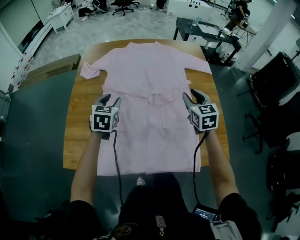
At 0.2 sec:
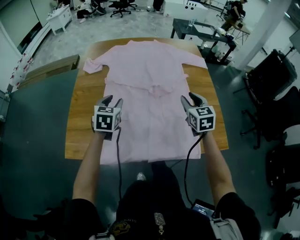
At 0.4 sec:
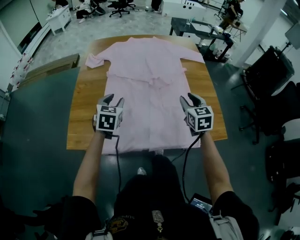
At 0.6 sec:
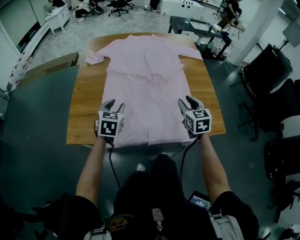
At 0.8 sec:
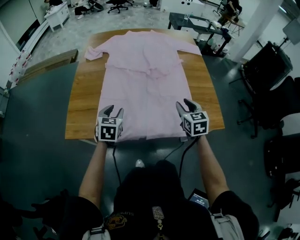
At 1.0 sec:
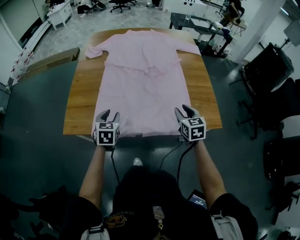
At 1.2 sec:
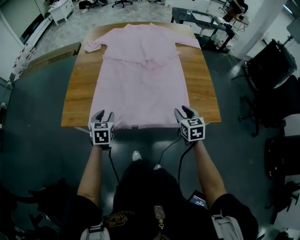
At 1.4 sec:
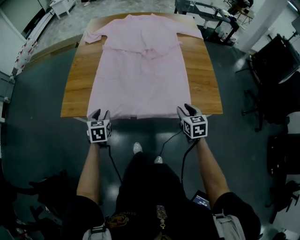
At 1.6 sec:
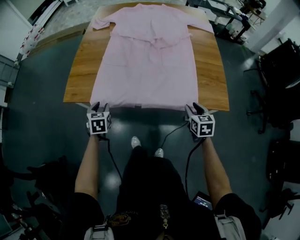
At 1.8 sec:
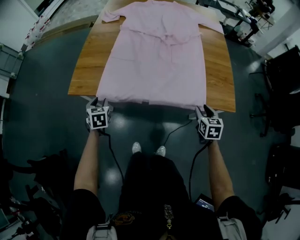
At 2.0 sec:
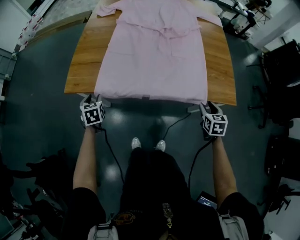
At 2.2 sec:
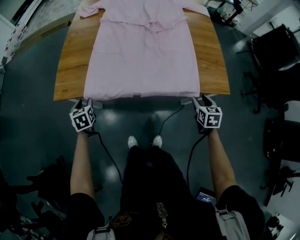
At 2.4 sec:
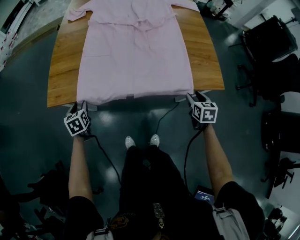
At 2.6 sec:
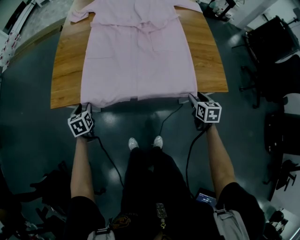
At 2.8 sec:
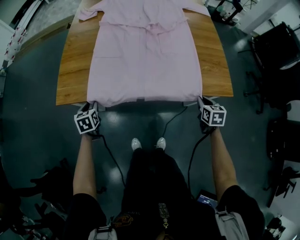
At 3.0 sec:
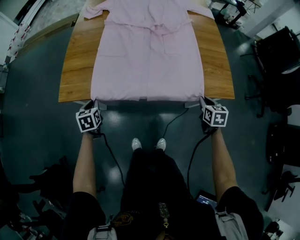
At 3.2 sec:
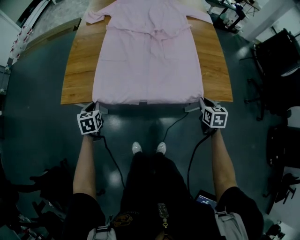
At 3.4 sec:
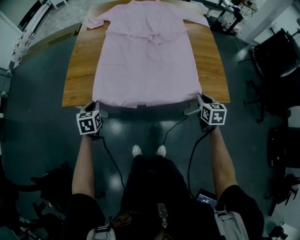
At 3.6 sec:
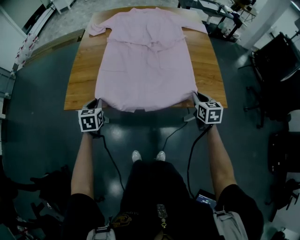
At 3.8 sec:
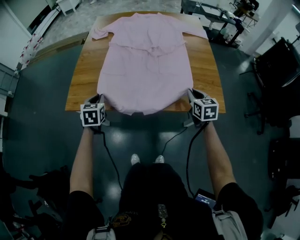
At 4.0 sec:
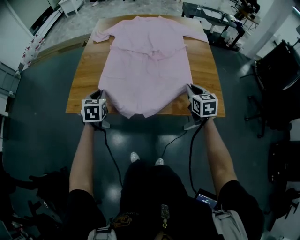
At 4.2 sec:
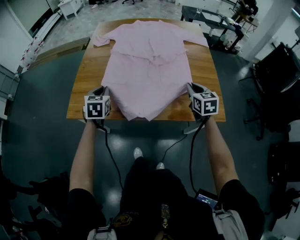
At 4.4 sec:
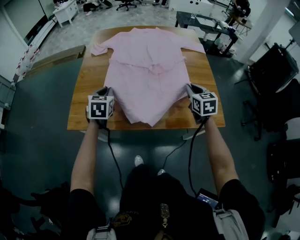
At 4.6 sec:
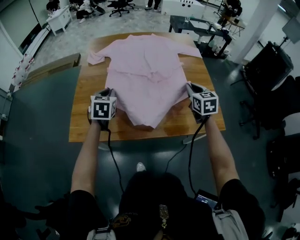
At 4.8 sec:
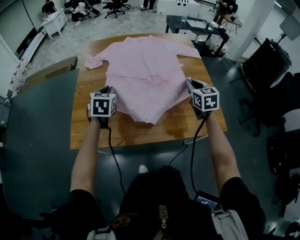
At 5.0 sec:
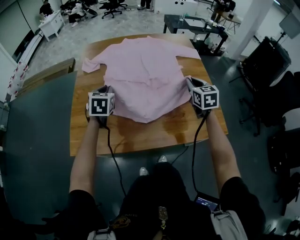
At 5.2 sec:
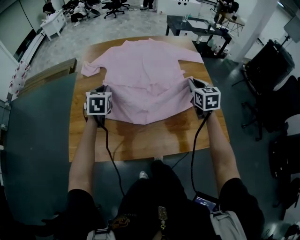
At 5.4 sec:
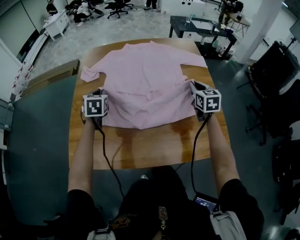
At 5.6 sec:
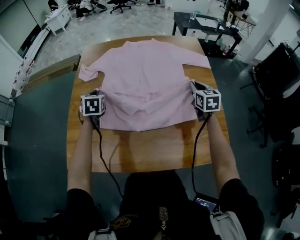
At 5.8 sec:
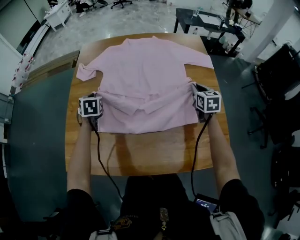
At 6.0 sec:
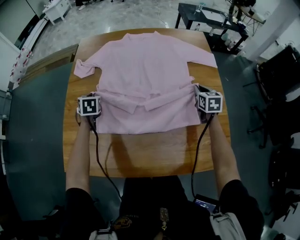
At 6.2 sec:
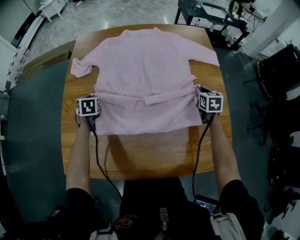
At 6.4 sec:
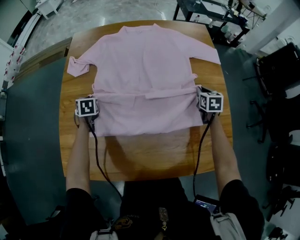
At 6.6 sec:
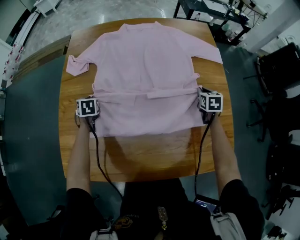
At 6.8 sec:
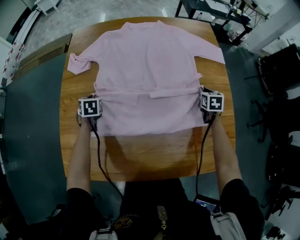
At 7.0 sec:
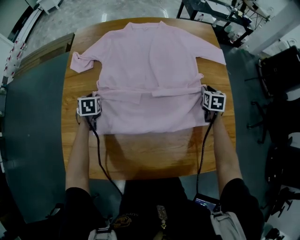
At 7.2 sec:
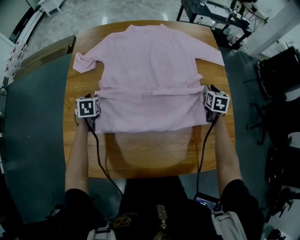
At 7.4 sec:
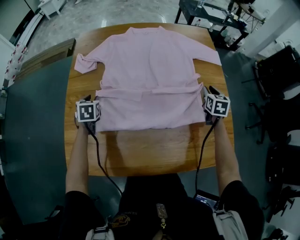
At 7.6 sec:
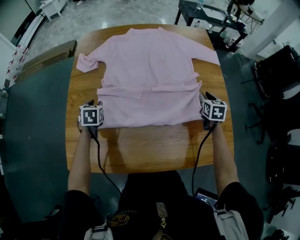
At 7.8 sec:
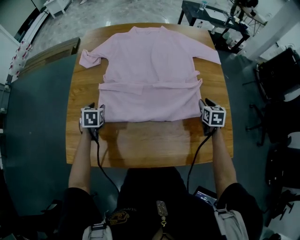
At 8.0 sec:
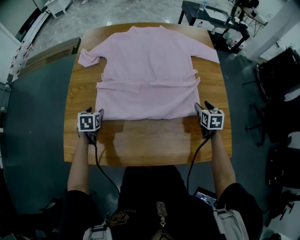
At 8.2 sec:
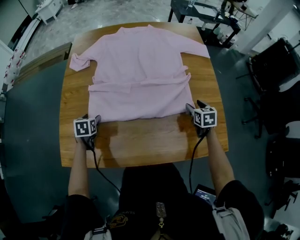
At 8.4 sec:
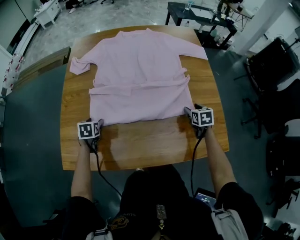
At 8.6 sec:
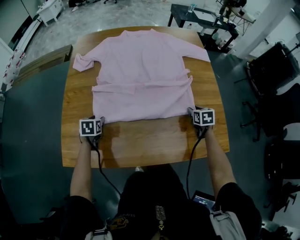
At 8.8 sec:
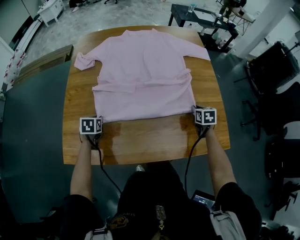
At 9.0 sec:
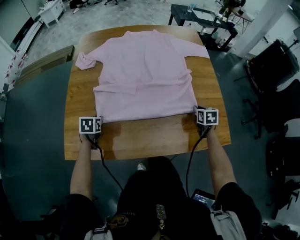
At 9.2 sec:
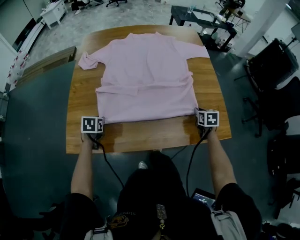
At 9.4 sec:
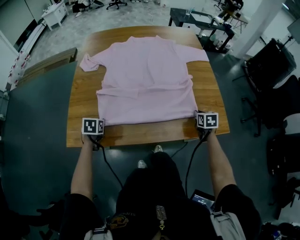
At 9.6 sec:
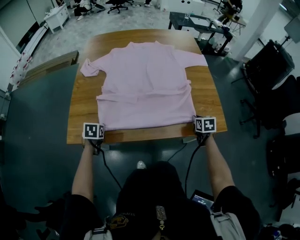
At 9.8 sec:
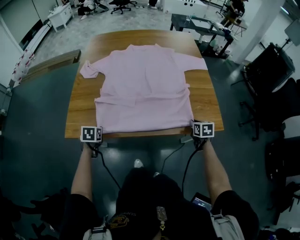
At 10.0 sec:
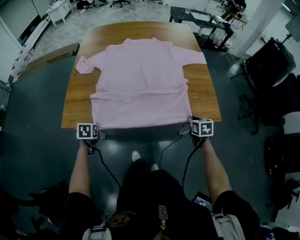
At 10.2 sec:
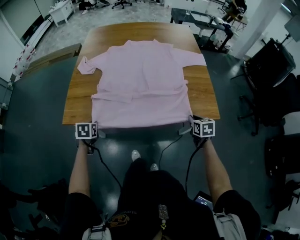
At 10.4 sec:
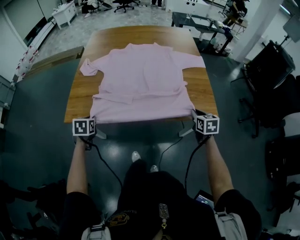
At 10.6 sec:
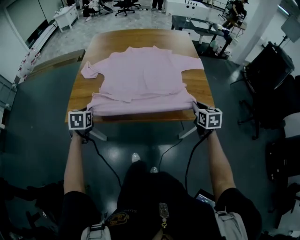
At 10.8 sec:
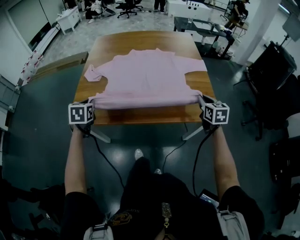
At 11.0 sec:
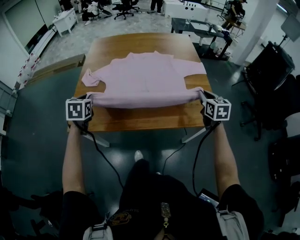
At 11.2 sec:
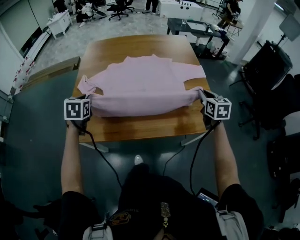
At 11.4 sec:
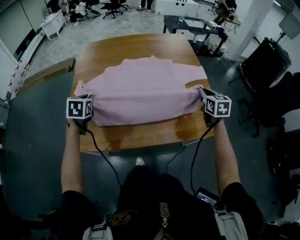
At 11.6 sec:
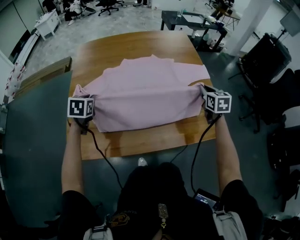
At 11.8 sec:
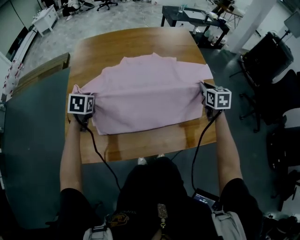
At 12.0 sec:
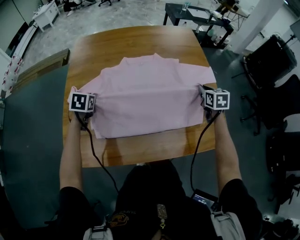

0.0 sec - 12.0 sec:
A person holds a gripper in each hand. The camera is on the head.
0.0 sec - 1.6 sec: The right gripper moves backward and downward, about 35 cm, while the left gripper travels backward by roughly 35 cm, and changes its angle by approximately 20 degrees.
1.6 sec - 3.0 sec: The left gripper heads to the left and downward, covering approximately 10 cm, and closes up. Meanwhile the right gripper closes its fingers.
3.0 sec - 4.4 sec: The left gripper is displaced upward, forward and to the right by roughly 25 cm, and rotates roughly 20 degrees. Meanwhile the right gripper heads upward and forward, covering some 25 cm, and turns by roughly 20 degrees.
4.4 sec - 6.0 sec: Both grippers travel together forward, approximately 25 cm. The left gripper rotates approximately 20 degrees.
6.0 sec - 7.6 sec: The grippers both shift backward by approximately 5 cm. The right gripper travels downward and back again, some 10 cm each way. Meanwhile the left gripper opens up.
7.6 sec - 9.0 sec: The grippers both shift backward and downward by about 15 cm. The right gripper opens, then closes again; the left gripper opens, then closes again.
9.0 sec - 10.4 sec: Both grippers travel together backward, roughly 20 cm.
10.4 sec - 12.0 sec: Both grippers move forward, roughly 30 cm.

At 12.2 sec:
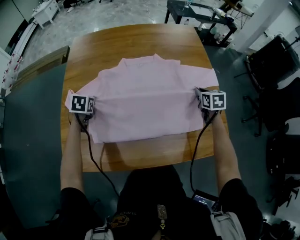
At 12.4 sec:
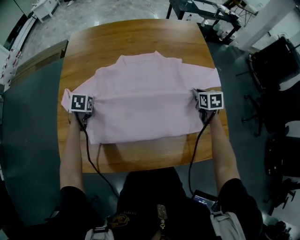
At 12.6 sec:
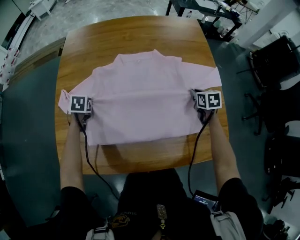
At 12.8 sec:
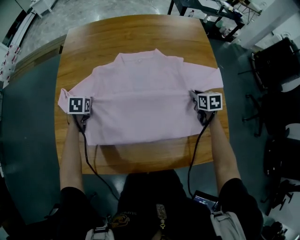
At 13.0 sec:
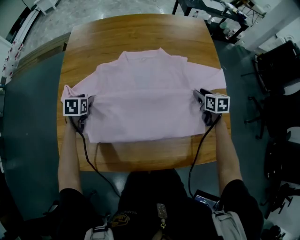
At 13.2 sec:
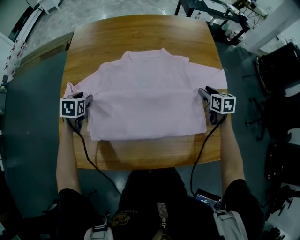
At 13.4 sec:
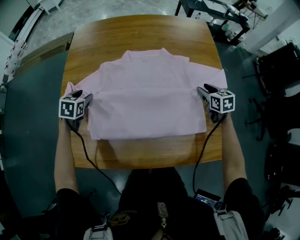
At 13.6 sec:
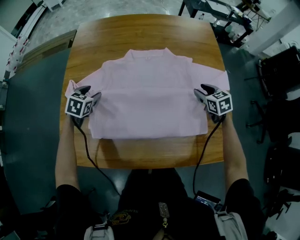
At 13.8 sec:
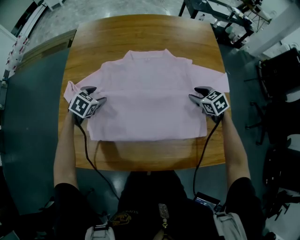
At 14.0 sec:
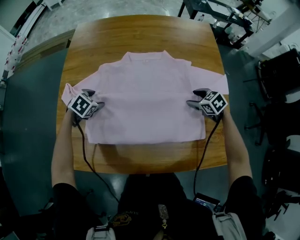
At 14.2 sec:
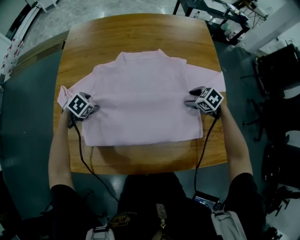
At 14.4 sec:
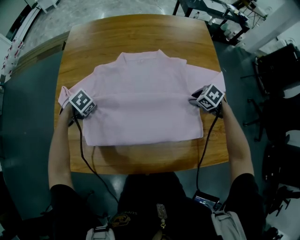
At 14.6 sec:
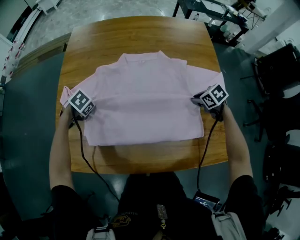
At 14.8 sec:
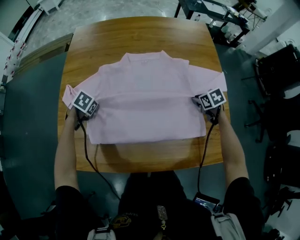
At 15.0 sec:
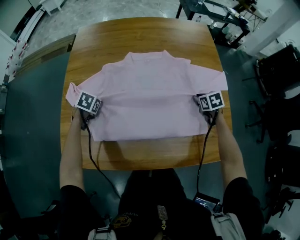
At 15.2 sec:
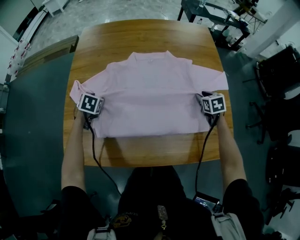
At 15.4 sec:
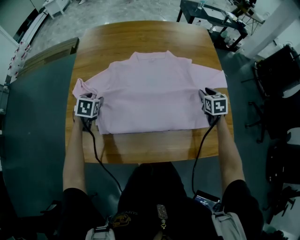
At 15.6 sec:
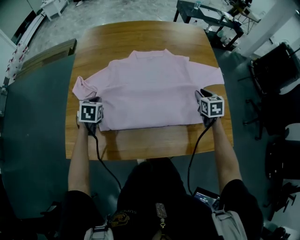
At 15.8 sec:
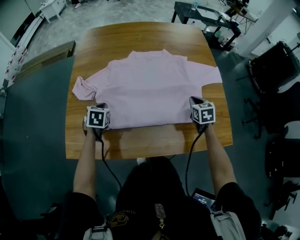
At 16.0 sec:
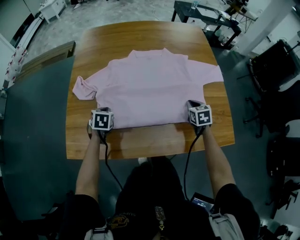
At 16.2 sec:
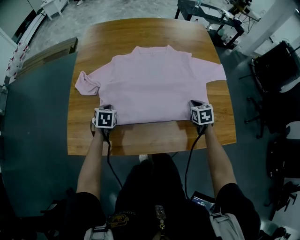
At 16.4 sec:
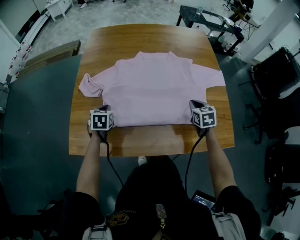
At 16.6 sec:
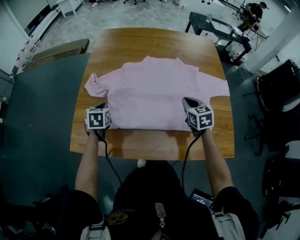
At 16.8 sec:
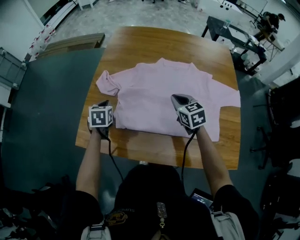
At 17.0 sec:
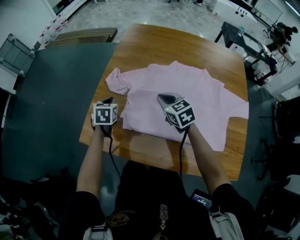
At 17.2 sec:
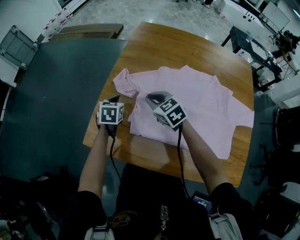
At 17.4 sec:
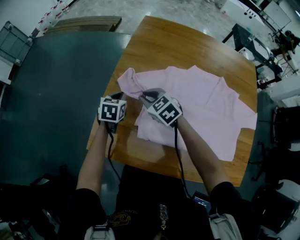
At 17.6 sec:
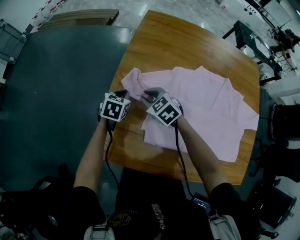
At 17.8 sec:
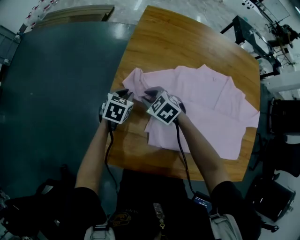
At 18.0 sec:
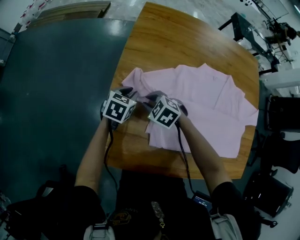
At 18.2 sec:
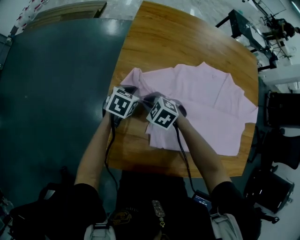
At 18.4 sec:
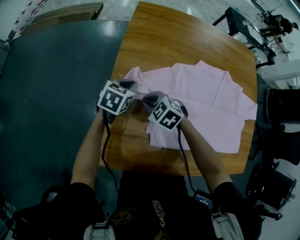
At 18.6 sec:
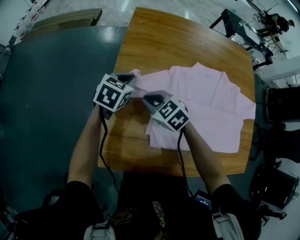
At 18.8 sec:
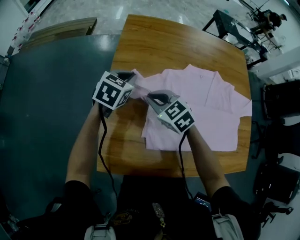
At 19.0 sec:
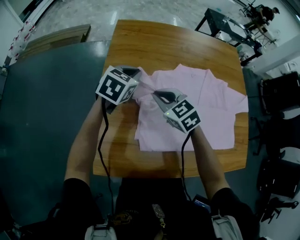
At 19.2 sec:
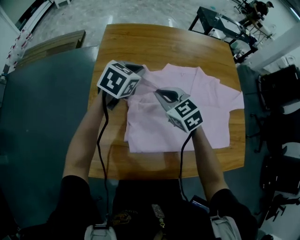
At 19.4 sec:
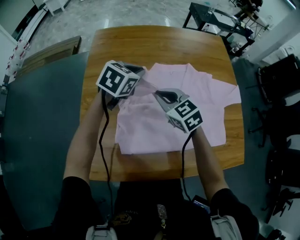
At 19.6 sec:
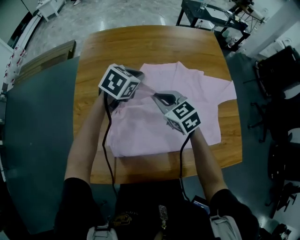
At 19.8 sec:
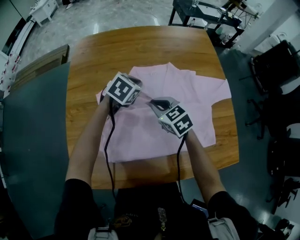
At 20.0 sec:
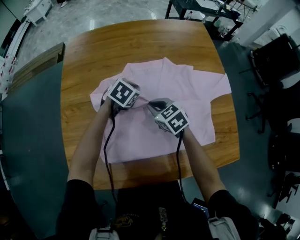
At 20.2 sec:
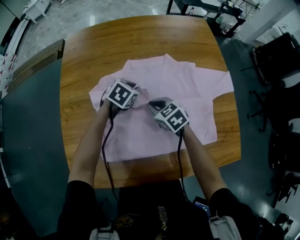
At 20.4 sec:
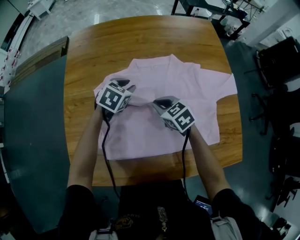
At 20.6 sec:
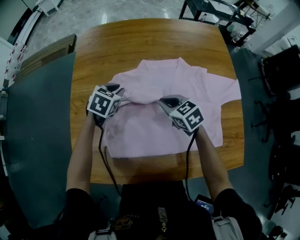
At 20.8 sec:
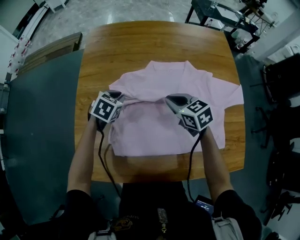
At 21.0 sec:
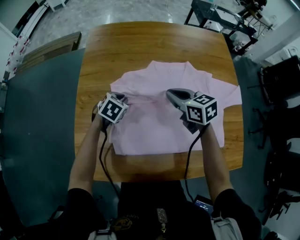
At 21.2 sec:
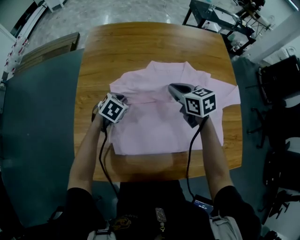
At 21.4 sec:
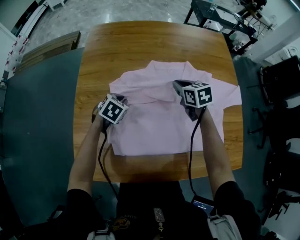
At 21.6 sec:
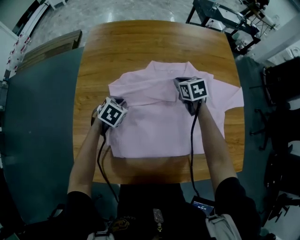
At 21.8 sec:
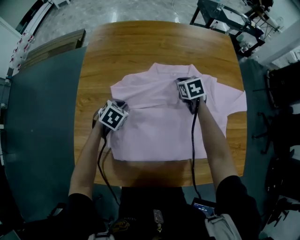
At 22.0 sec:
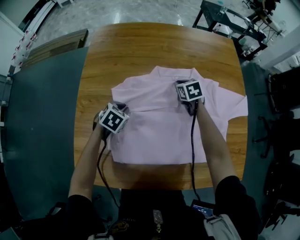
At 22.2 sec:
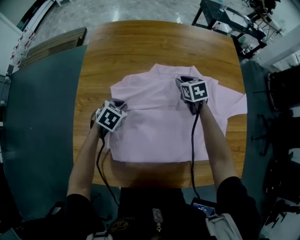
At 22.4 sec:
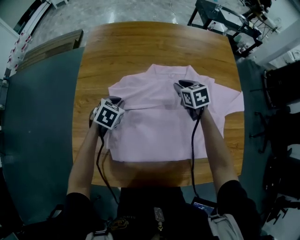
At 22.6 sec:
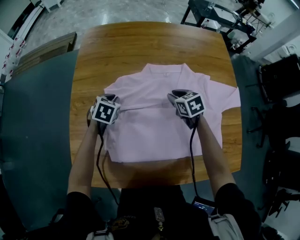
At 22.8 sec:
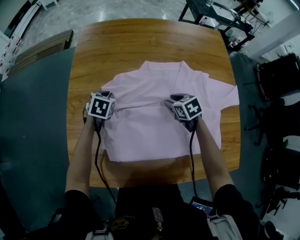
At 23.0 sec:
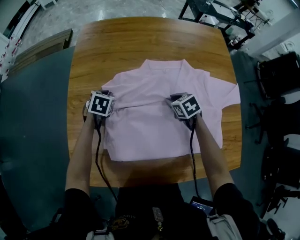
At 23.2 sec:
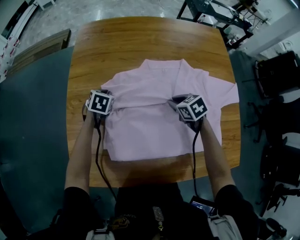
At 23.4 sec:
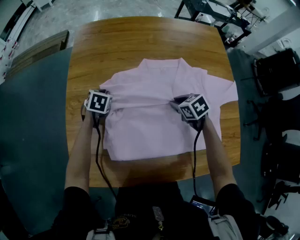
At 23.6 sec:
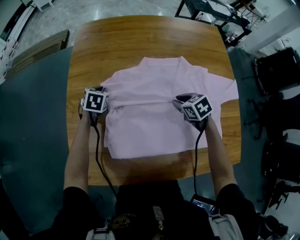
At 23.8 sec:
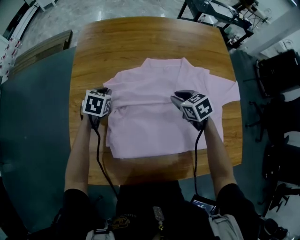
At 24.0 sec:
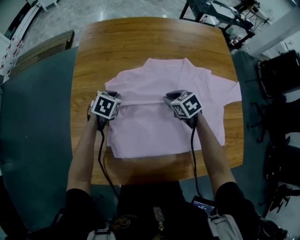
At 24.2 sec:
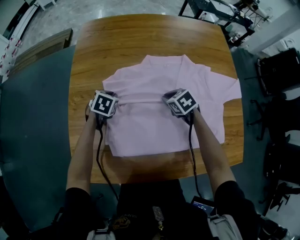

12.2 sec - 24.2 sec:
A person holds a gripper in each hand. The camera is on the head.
12.2 sec - 13.8 sec: The left gripper turns by roughly 20 degrees, and opens up; the right gripper goes roughly 10 cm to the left and downward, turns by about 40 degrees, and opens its fingers.
13.8 sec - 15.2 sec: The right gripper swivels roughly 30 degrees; the left gripper ends up some 5 cm from where it was, and closes, then opens again.
15.2 sec - 16.6 sec: The left gripper moves backward, some 10 cm, swivels some 30 degrees, and closes. The right gripper is displaced to the left and upward by roughly 20 cm, and closes.
16.6 sec - 18.2 sec: The right gripper goes some 40 cm to the left and forward, and rotates some 60 degrees. The left gripper heads forward, covering some 15 cm, and turns by roughly 20 degrees.
18.2 sec - 19.8 sec: Both grippers travel together to the right, about 35 cm. The right gripper changes its angle by about 40 degrees. Meanwhile the left gripper swivels about 30 degrees.
19.8 sec - 21.2 sec: The left gripper shifts roughly 20 cm to the left and downward. Meanwhile the right gripper moves about 10 cm downward and comes back.
21.2 sec - 22.6 sec: The right gripper goes about 10 cm downward.
22.6 sec - 24.2 sec: The right gripper shifts by roughly 5 cm.
